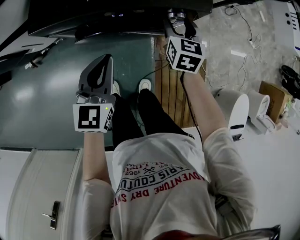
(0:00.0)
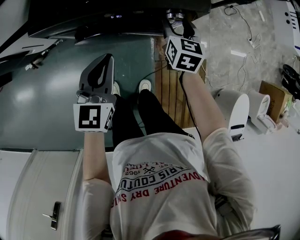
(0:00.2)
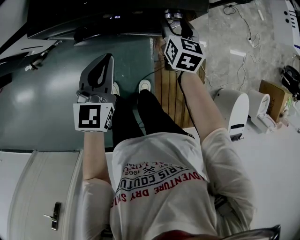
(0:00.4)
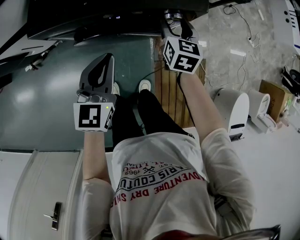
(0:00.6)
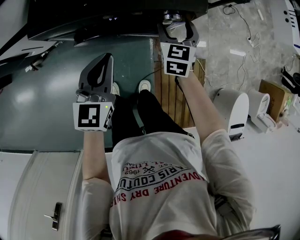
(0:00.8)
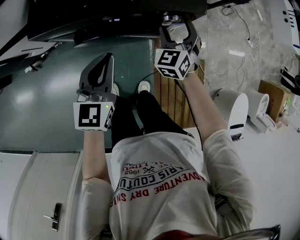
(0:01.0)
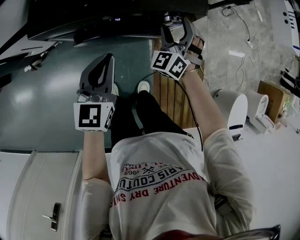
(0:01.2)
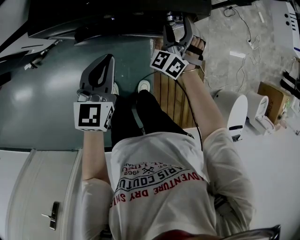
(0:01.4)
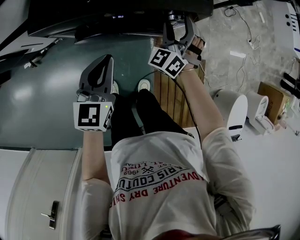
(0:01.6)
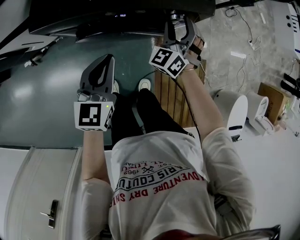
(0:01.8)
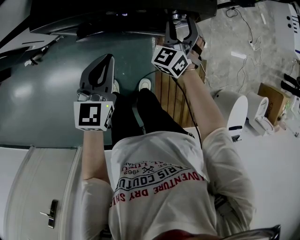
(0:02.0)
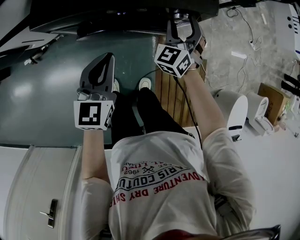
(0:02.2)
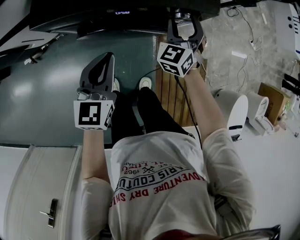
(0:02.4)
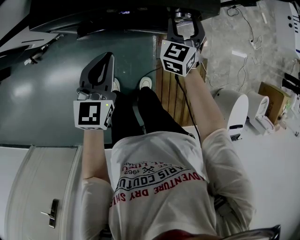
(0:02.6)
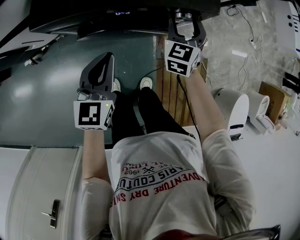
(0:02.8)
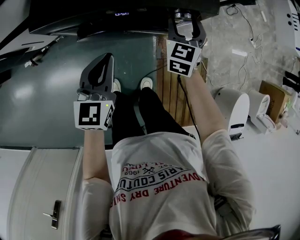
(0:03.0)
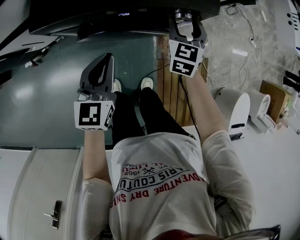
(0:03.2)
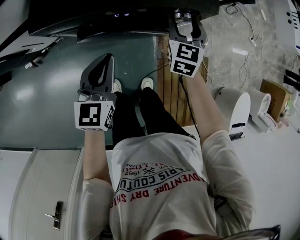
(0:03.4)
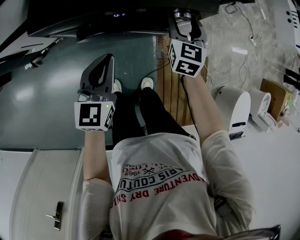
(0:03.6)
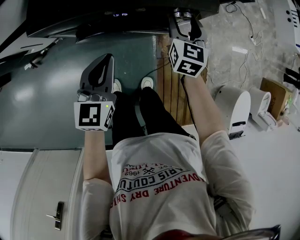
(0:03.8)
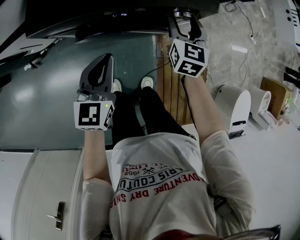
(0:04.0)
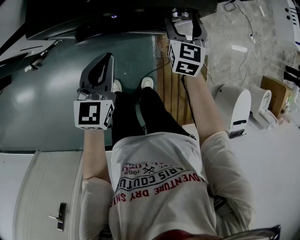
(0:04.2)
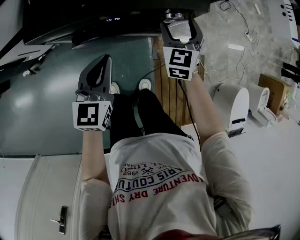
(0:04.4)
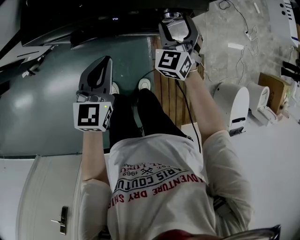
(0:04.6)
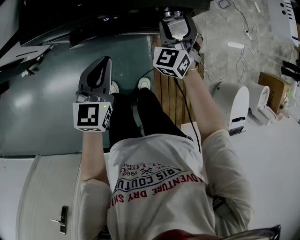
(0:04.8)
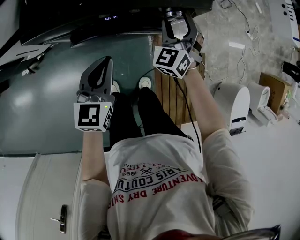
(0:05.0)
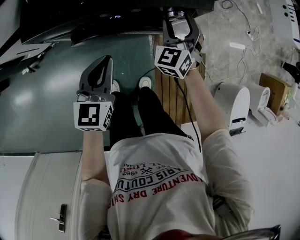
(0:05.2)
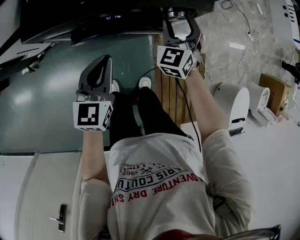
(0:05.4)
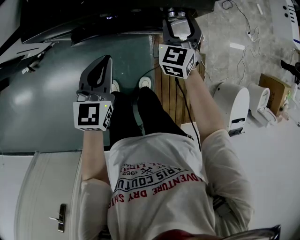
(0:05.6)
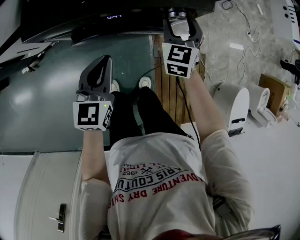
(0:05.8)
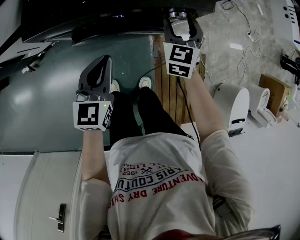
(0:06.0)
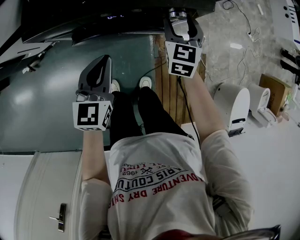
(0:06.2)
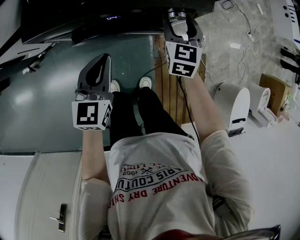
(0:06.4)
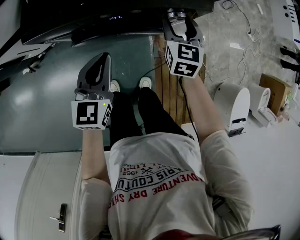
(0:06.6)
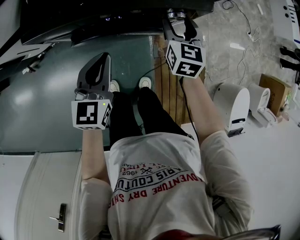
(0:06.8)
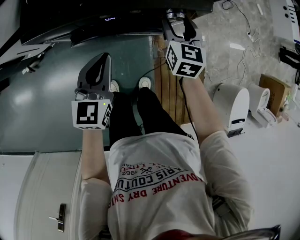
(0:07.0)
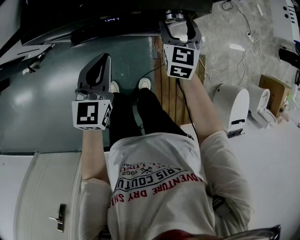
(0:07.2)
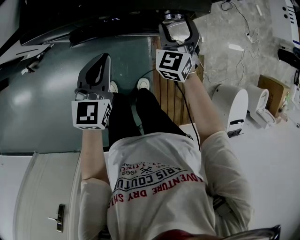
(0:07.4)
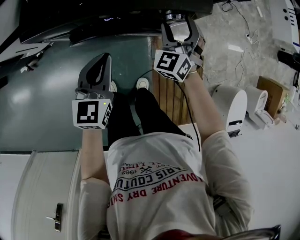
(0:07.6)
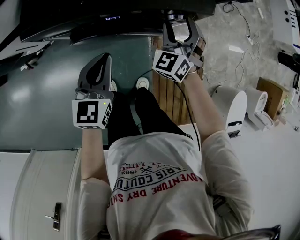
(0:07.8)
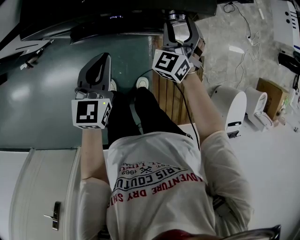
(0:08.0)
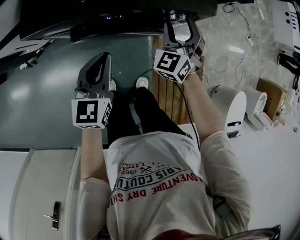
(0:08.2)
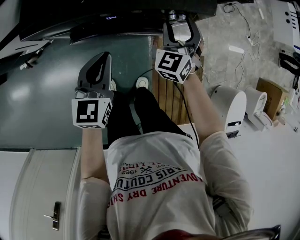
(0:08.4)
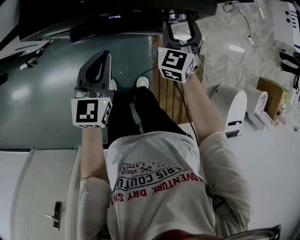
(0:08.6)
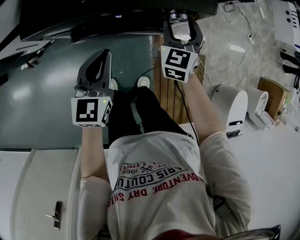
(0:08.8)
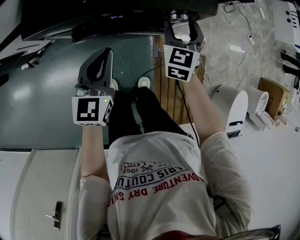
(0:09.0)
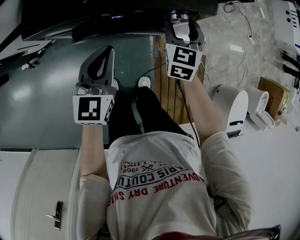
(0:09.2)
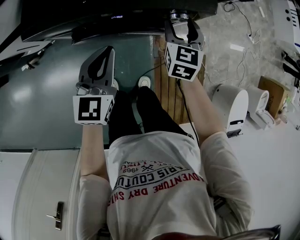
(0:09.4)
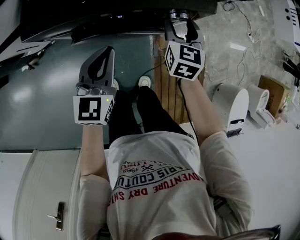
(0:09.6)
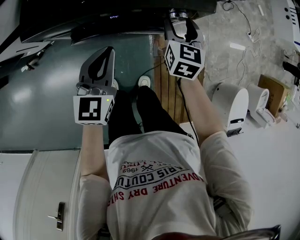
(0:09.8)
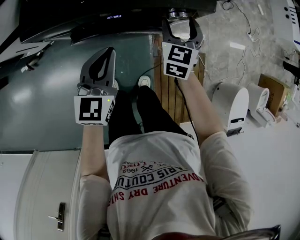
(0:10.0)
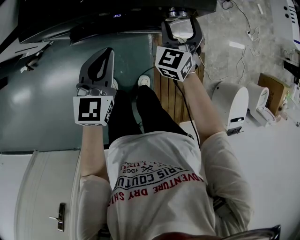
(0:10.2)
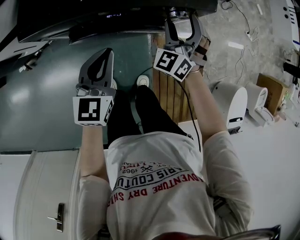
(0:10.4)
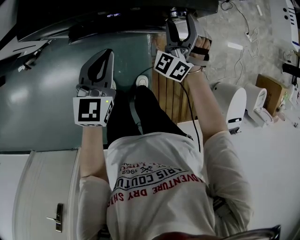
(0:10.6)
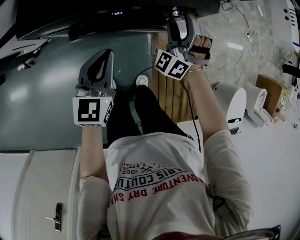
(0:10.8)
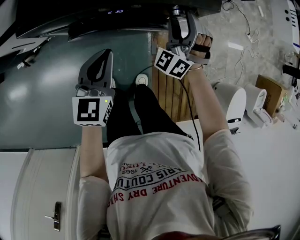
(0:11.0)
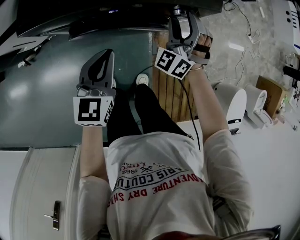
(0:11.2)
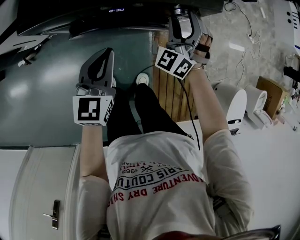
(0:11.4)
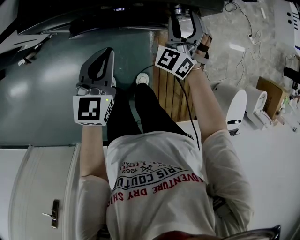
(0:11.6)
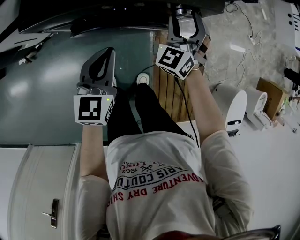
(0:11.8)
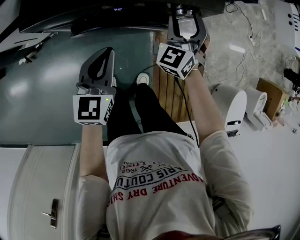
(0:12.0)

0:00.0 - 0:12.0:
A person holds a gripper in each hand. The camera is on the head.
0:00.0 - 0:01.6: The right gripper rolls counterclockwise, seen from behind, by some 50 degrees.
0:01.6 - 0:03.0: The right gripper changes its angle by approximately 40 degrees.
0:03.0 - 0:04.4: The grippers stay close to where they were, moving slightly.
0:06.0 - 0:07.6: The right gripper turns by some 30 degrees.
0:07.6 - 0:09.0: The right gripper turns by some 30 degrees.
0:09.0 - 0:10.4: The right gripper swivels about 40 degrees.
0:10.4 - 0:12.0: The grippers stay close to where they were, moving slightly.

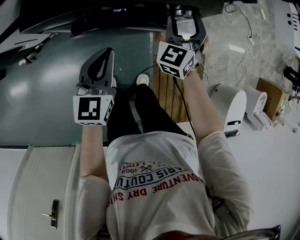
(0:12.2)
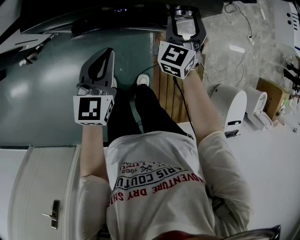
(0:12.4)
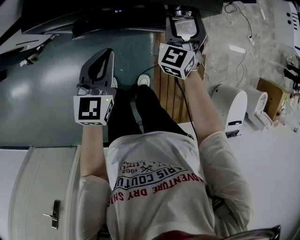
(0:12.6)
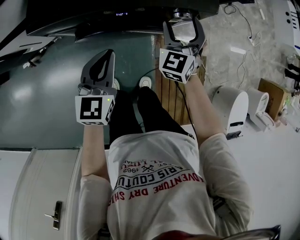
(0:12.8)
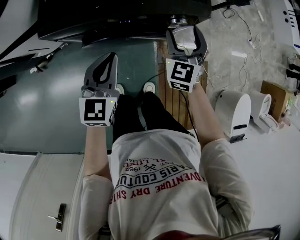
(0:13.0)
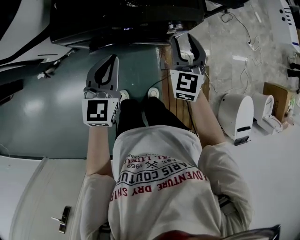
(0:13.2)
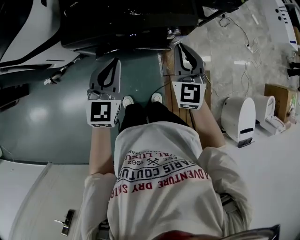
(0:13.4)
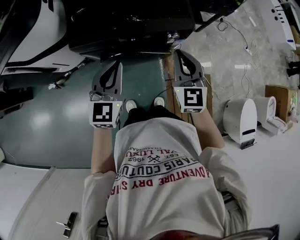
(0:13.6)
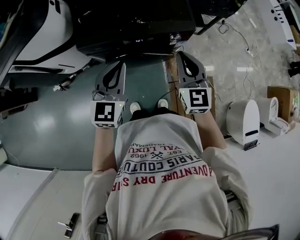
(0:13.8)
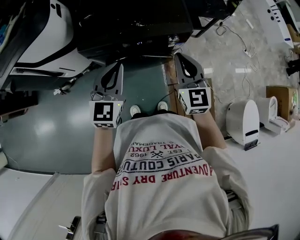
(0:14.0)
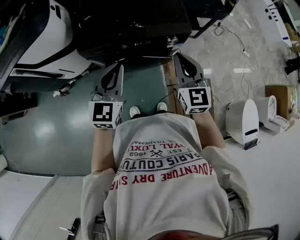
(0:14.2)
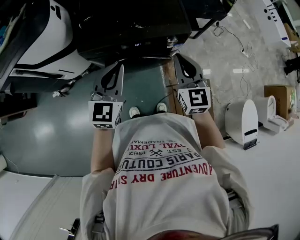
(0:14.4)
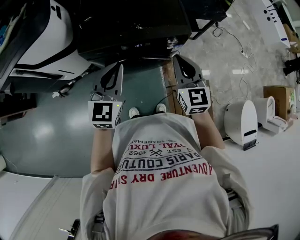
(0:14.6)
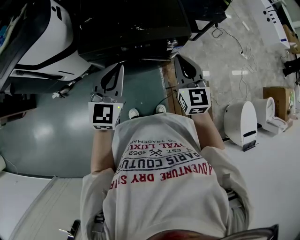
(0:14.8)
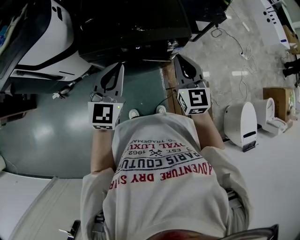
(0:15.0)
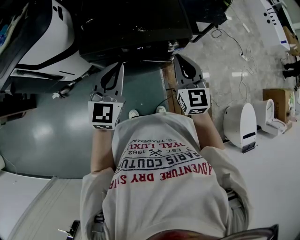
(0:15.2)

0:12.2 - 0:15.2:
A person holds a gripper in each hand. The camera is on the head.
0:12.2 - 0:13.8: The left gripper travels upward by some 20 cm; the right gripper travels upward and backward by some 25 cm, swivels some 30 degrees, and closes its fingers.
0:13.8 - 0:15.2: There are only small adjustments of the grippers.

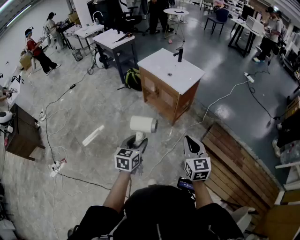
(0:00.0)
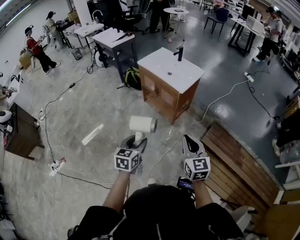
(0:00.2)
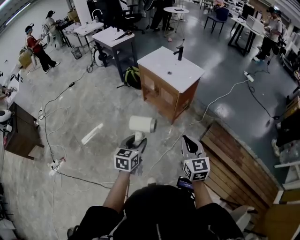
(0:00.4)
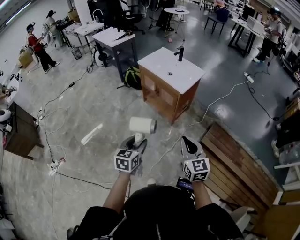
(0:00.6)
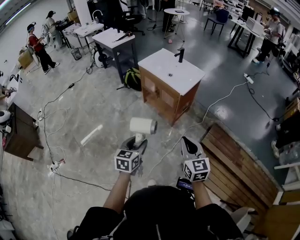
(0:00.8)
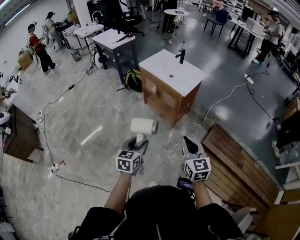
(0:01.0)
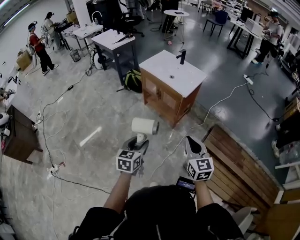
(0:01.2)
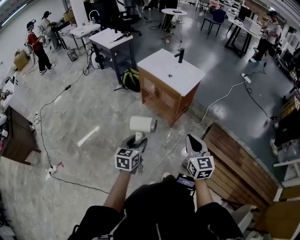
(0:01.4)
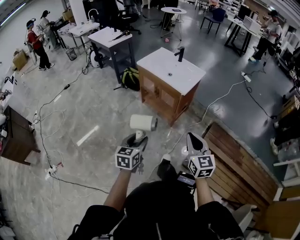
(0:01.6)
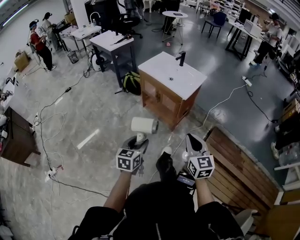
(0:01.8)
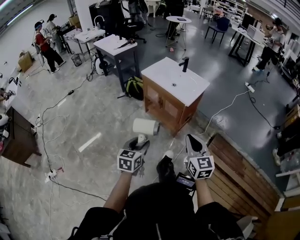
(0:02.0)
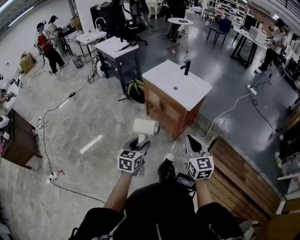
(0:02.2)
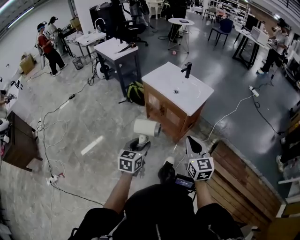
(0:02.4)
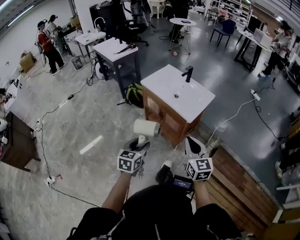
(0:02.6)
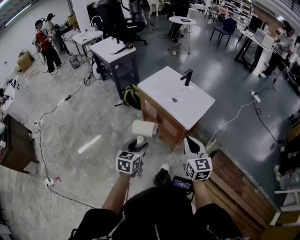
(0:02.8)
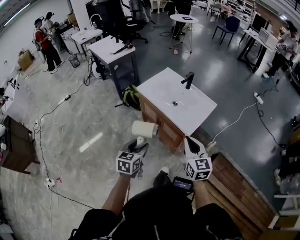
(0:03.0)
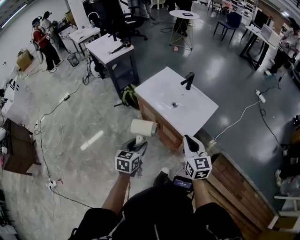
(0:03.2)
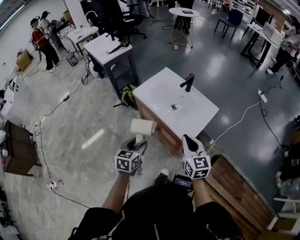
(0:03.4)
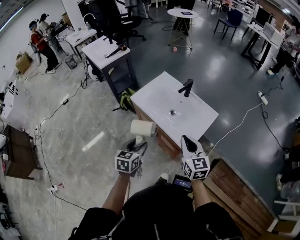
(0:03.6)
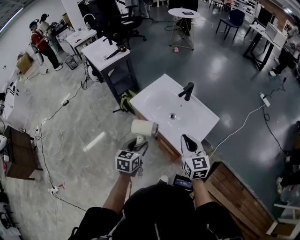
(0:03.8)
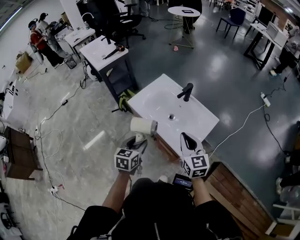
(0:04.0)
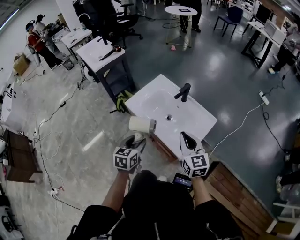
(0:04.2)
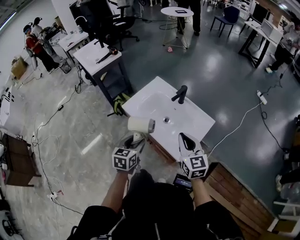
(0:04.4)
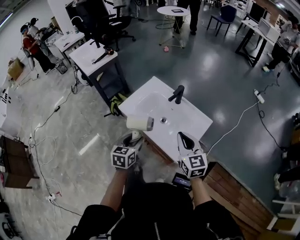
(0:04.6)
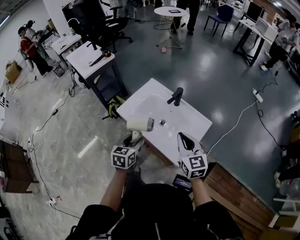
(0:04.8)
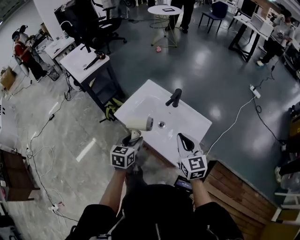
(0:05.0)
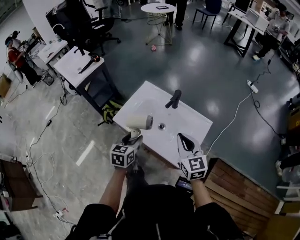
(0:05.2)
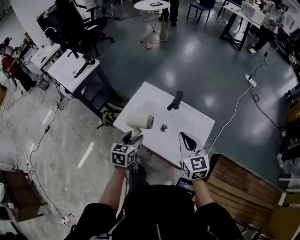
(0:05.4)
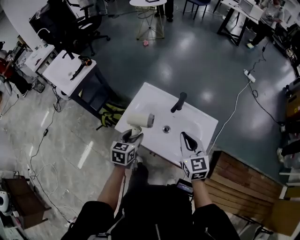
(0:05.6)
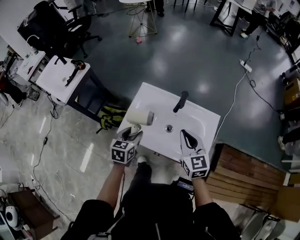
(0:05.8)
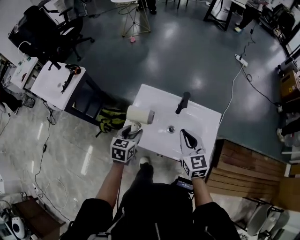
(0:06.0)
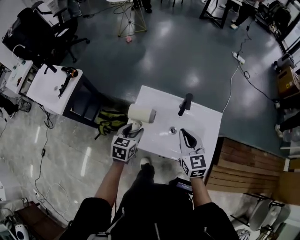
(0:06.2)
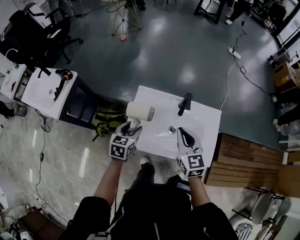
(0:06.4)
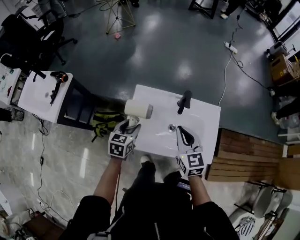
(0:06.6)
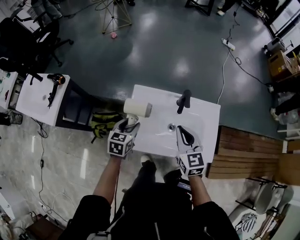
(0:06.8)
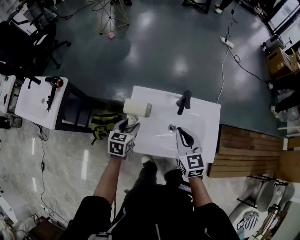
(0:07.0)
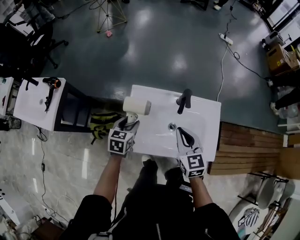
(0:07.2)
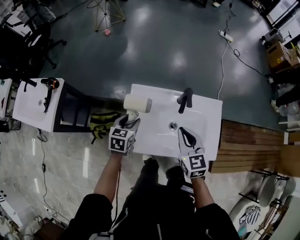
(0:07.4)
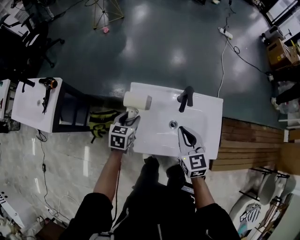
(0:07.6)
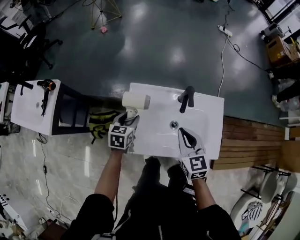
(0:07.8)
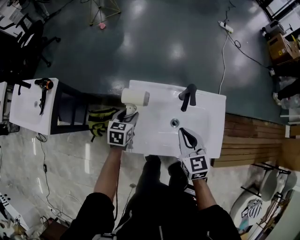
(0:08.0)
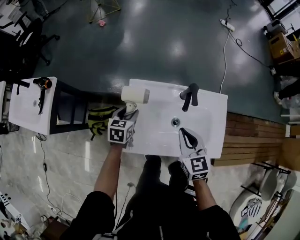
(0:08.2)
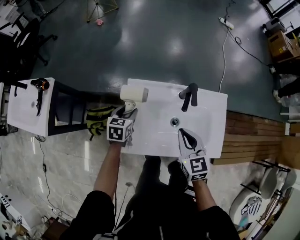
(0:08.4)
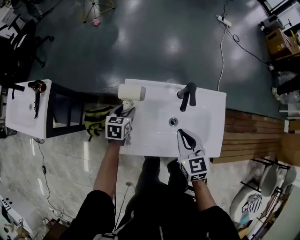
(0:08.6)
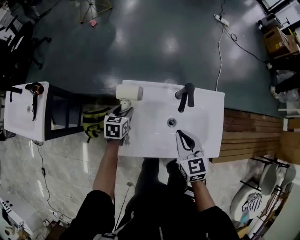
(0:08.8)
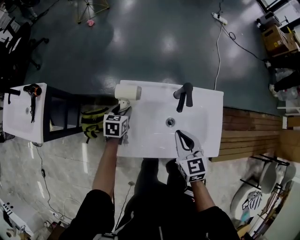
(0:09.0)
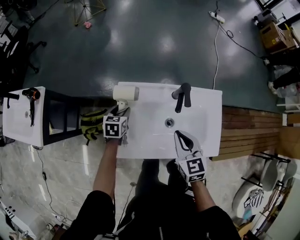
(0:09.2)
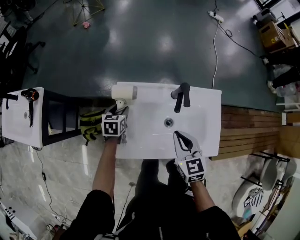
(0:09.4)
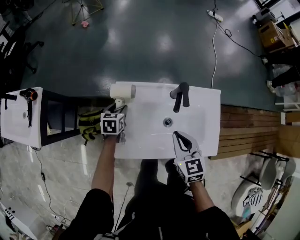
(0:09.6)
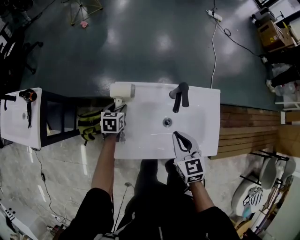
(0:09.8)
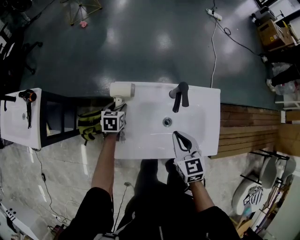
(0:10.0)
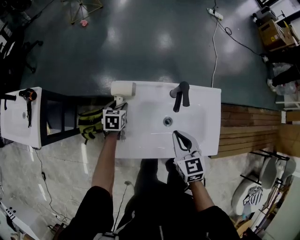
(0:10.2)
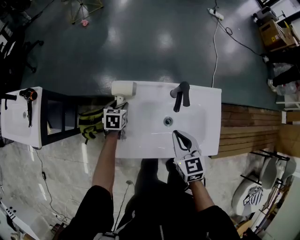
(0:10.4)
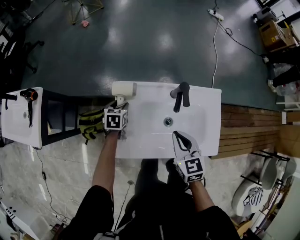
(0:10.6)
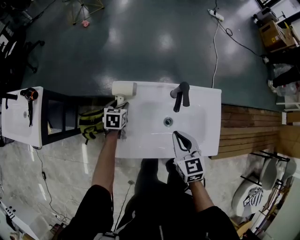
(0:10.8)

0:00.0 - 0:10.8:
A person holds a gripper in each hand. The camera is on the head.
0:00.0 - 0:01.6: The left gripper changes place by some 5 cm, while the right gripper shifts by some 5 cm.
0:01.6 - 0:03.0: The two grippers go approximately 30 cm forward.
0:03.0 - 0:04.6: Both grippers travel together forward, roughly 25 cm.
0:04.6 - 0:06.2: The right gripper ends up approximately 20 cm from where it was, and changes its angle by approximately 30 degrees; the left gripper moves about 30 cm, and turns by roughly 30 degrees.
0:06.2 - 0:07.8: The left gripper shifts some 15 cm forward and downward. Meanwhile the right gripper shifts by some 5 cm.
0:07.8 - 0:09.2: The left gripper is displaced downward and forward by some 10 cm.
0:09.2 - 0:10.8: The grippers stay close to where they were, moving slightly.
